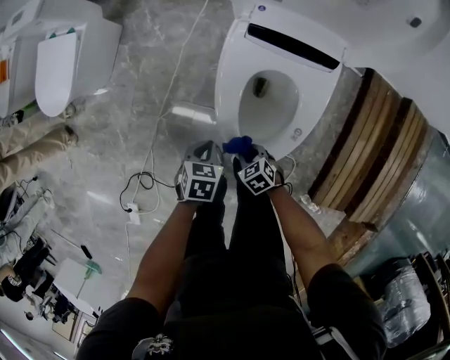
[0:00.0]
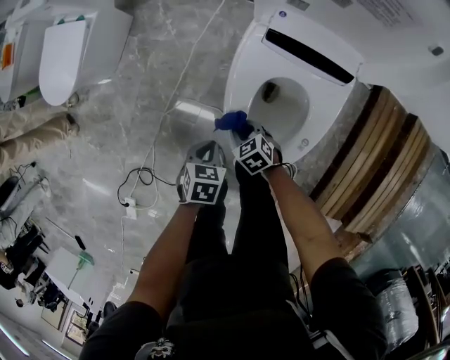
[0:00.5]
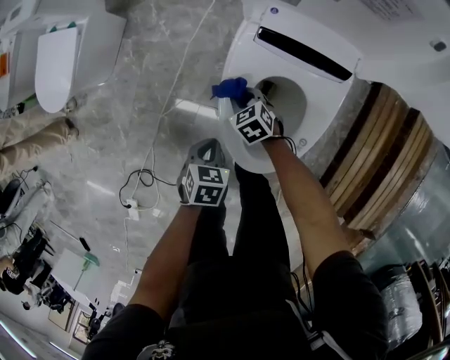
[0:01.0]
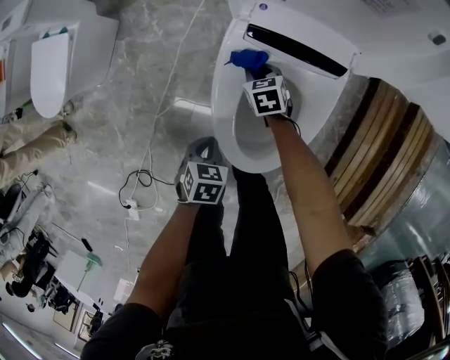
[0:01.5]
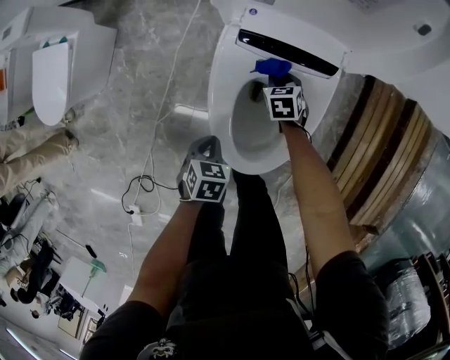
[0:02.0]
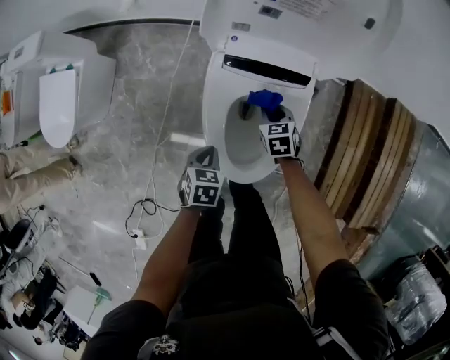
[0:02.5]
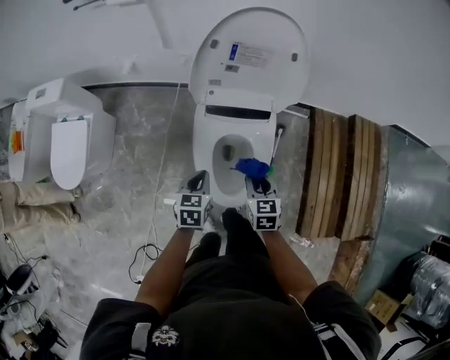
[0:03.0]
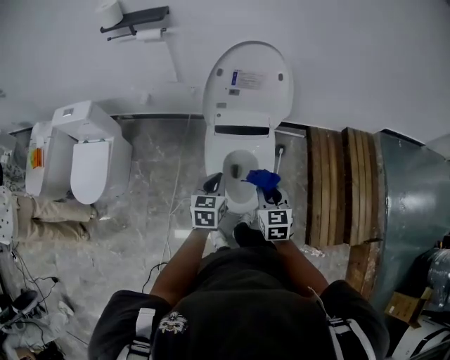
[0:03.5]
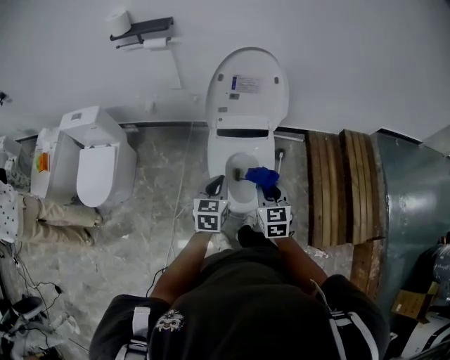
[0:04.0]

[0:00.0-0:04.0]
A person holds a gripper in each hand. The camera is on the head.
0:00.0 to 0:02.0: The right gripper changes place by about 30 cm, and swivels about 30 degrees. Meanwhile the left gripper changes place by roughly 5 cm.
0:02.0 to 0:04.0: The right gripper goes some 50 cm upward and backward, and tilts its fingers approximately 30 degrees upward. The left gripper moves upward, about 35 cm, and points its fingers roughly 40 degrees further upward.

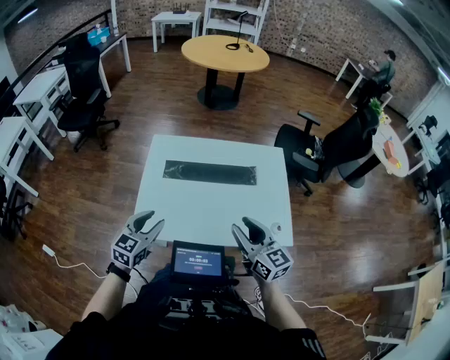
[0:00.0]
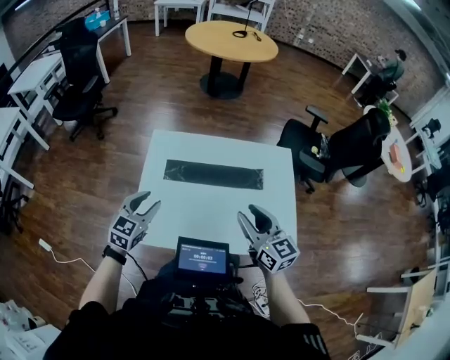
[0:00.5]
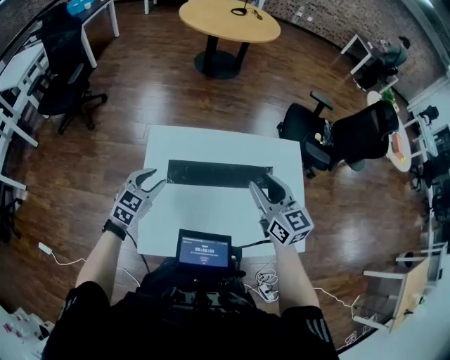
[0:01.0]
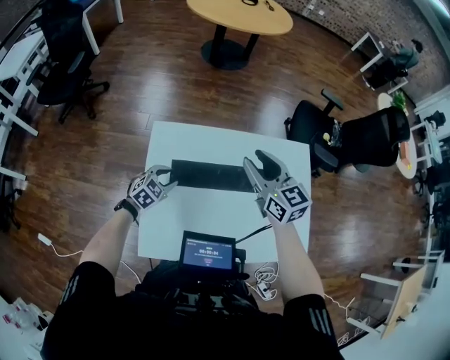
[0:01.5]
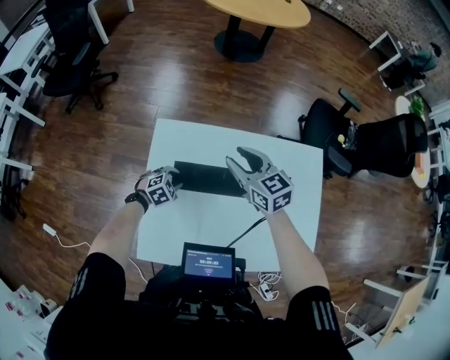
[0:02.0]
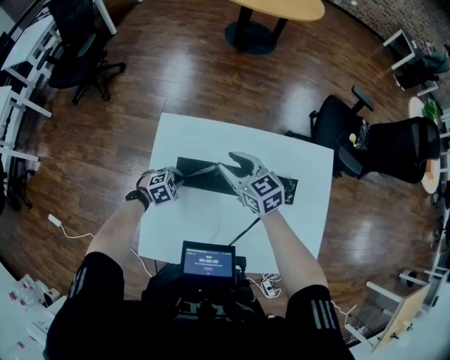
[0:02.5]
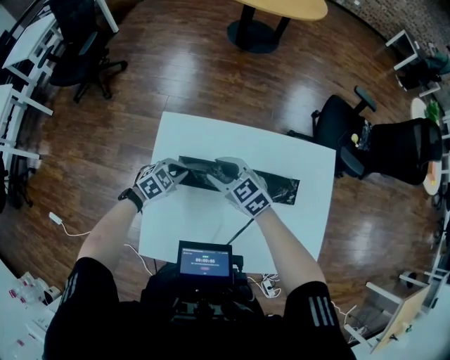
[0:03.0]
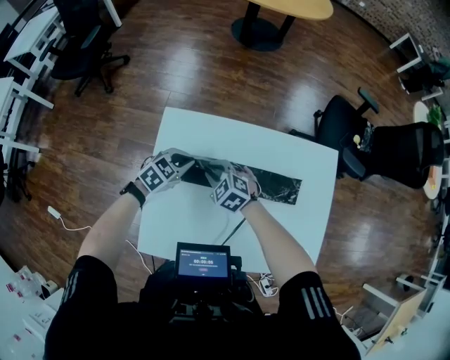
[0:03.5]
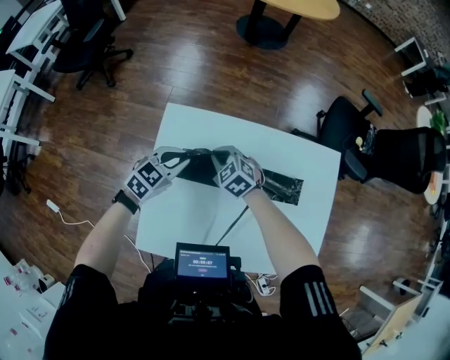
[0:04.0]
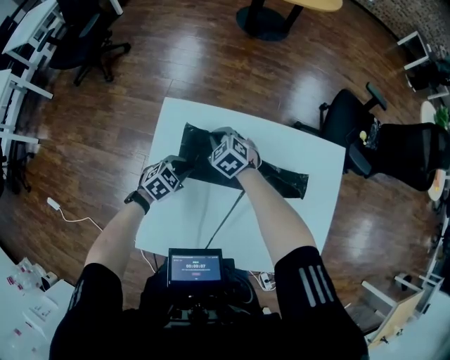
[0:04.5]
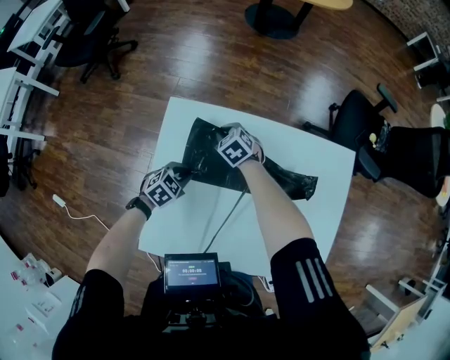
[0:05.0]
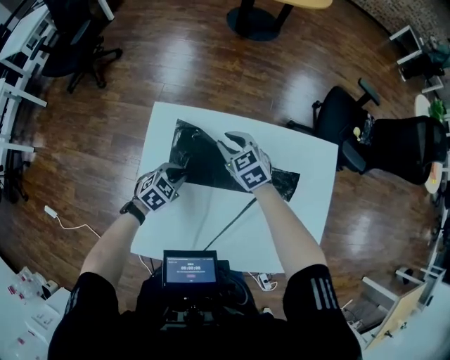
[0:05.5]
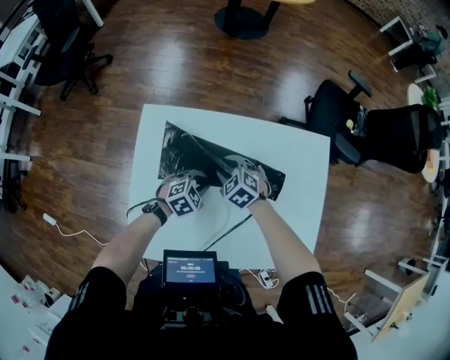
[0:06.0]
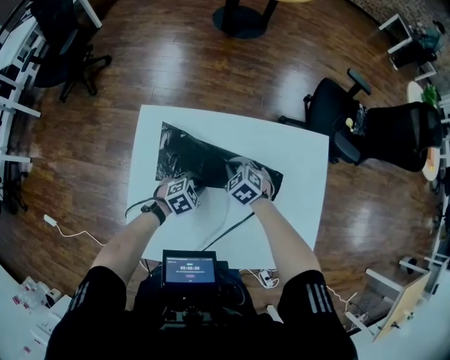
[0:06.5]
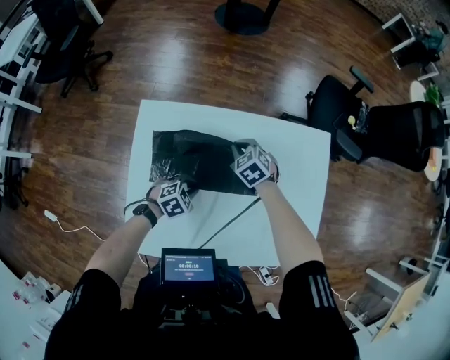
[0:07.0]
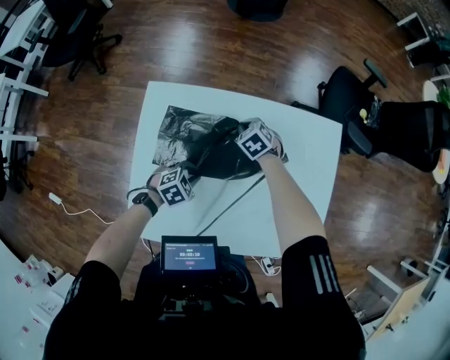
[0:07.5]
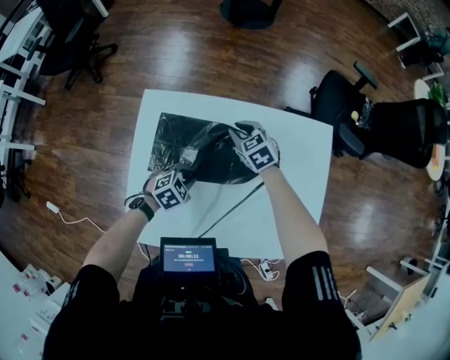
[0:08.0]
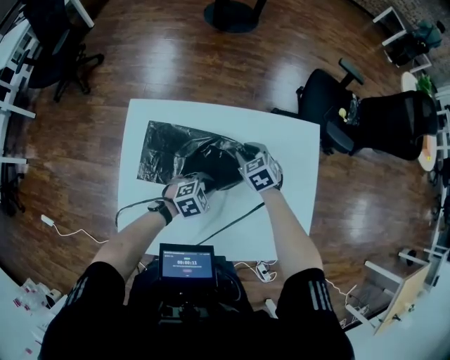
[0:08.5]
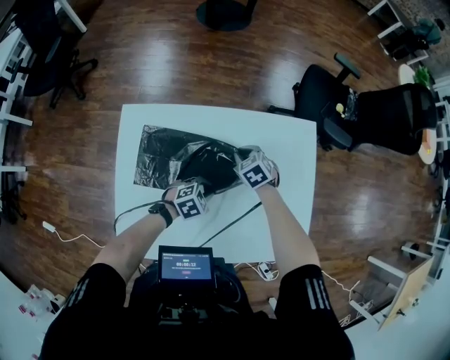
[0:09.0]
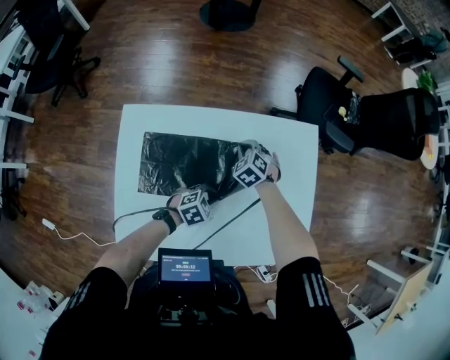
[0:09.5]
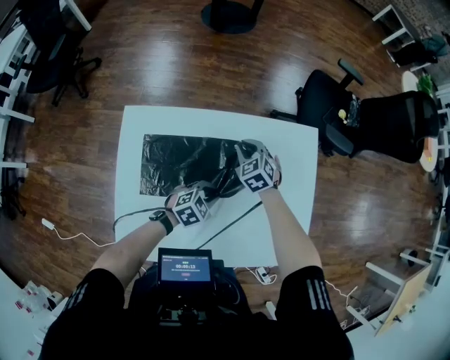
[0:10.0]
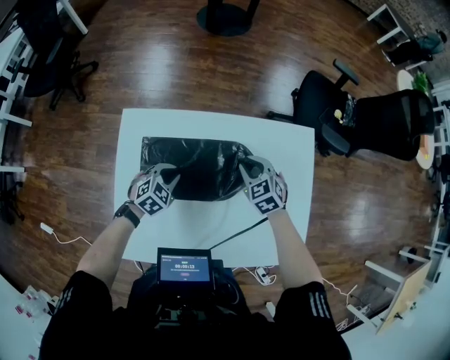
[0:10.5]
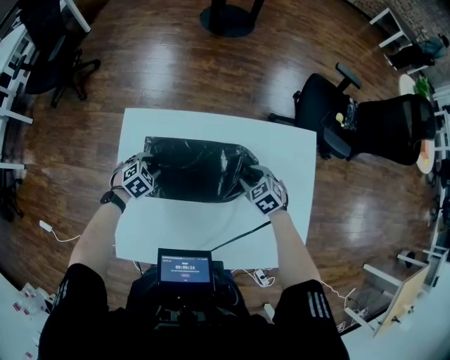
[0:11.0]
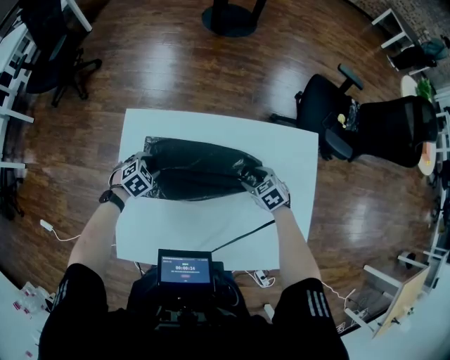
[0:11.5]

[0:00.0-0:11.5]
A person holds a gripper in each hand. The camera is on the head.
0:00.0 to 0:02.0: The right gripper travels forward and to the left by roughly 40 cm, and swivels roughly 20 degrees, while the left gripper heads forward and downward, covering about 40 cm, and angles its fingers downward, by roughly 40 degrees.
0:02.0 to 0:04.0: The right gripper is displaced downward and to the left by about 20 cm, changes its angle by about 40 degrees, and closes its fingers. Meanwhile the left gripper goes some 15 cm upward, and changes its angle by about 30 degrees.
0:04.0 to 0:06.0: The right gripper is displaced to the right and downward by roughly 10 cm, and opens its fingers, while the left gripper heads to the right, downward and backward, covering roughly 20 cm, and changes its angle by roughly 20 degrees.
0:06.0 to 0:07.5: The left gripper is displaced backward by approximately 5 cm. The right gripper travels forward by approximately 10 cm, and closes its fingers.
0:07.5 to 0:09.5: Both grippers move to the right, some 10 cm. The right gripper opens, then closes once more.
0:09.5 to 0:11.5: The left gripper ends up about 30 cm from where it was, changes its angle by about 30 degrees, and opens its fingers, while the right gripper goes upward and returns, some 10 cm each way, swivels roughly 20 degrees, and opens.

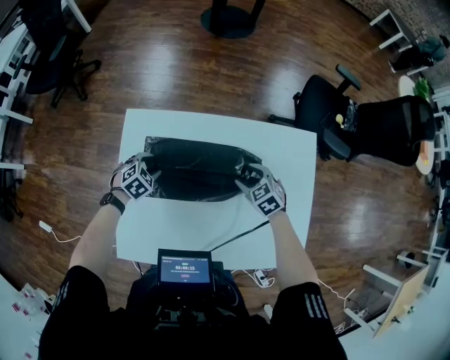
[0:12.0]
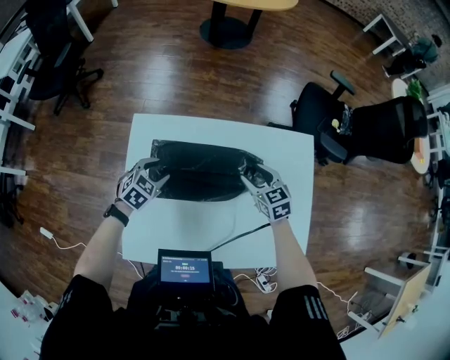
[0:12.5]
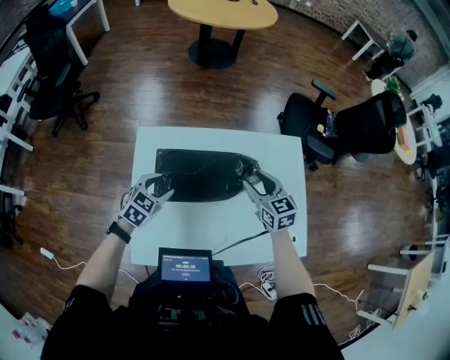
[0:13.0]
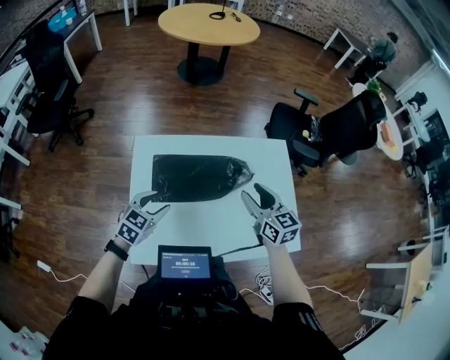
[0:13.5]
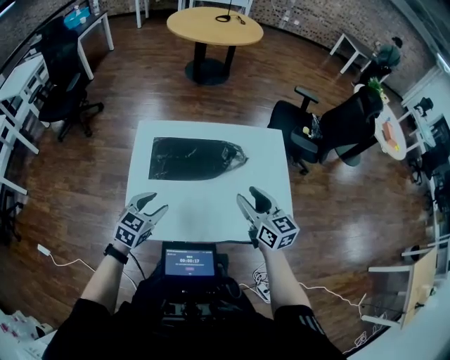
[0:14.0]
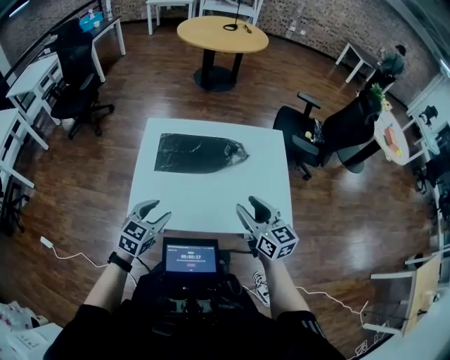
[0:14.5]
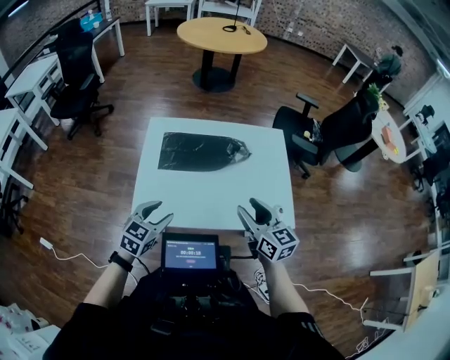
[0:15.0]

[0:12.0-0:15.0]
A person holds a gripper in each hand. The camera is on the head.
0:12.0 to 0:13.5: Both grippers travel together upward and backward, roughly 25 cm. The left gripper changes its angle by roughly 30 degrees. Meanwhile the right gripper tips its fingers upward by approximately 40 degrees.
0:13.5 to 0:15.0: The grippers both shift backward by about 20 cm.

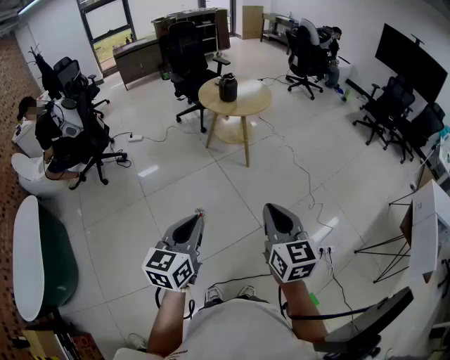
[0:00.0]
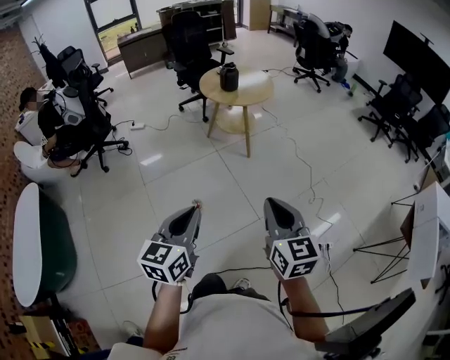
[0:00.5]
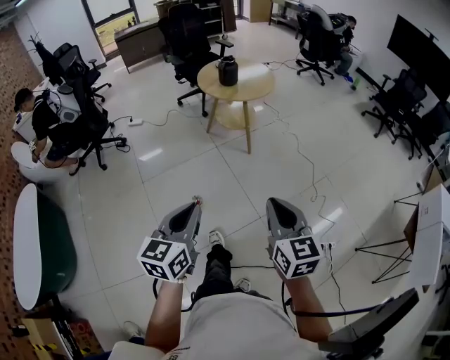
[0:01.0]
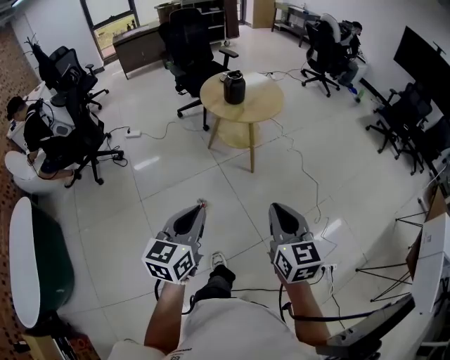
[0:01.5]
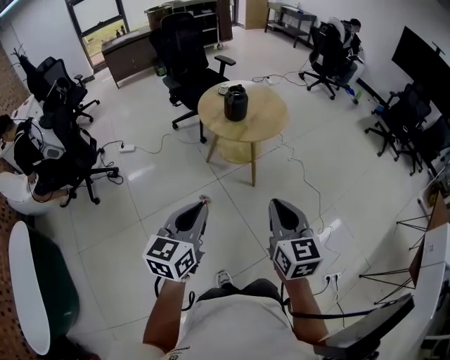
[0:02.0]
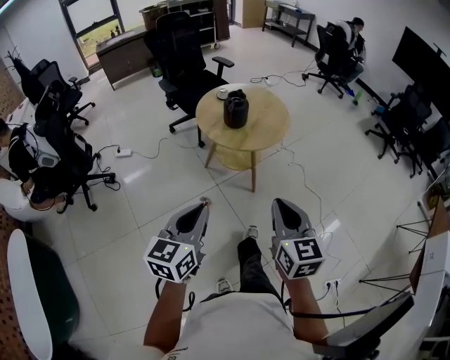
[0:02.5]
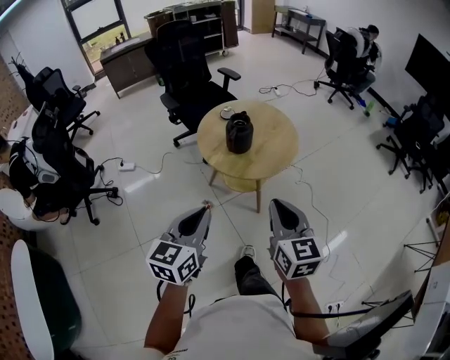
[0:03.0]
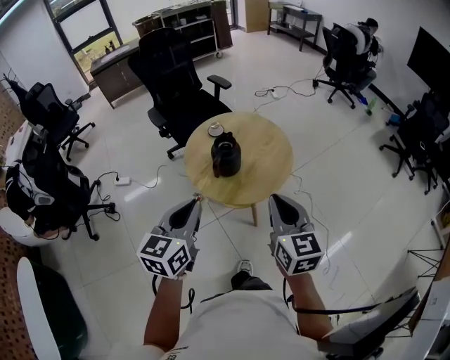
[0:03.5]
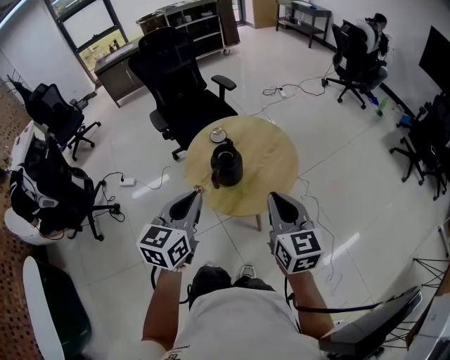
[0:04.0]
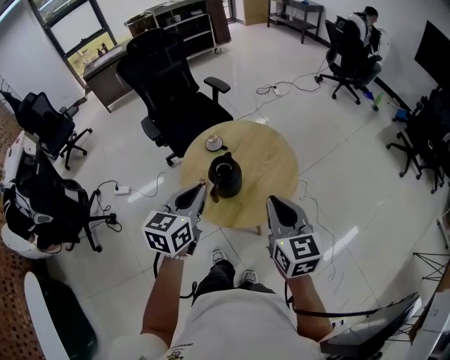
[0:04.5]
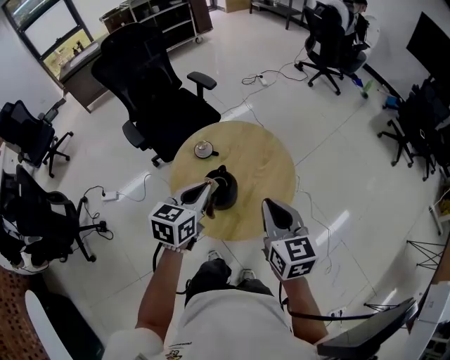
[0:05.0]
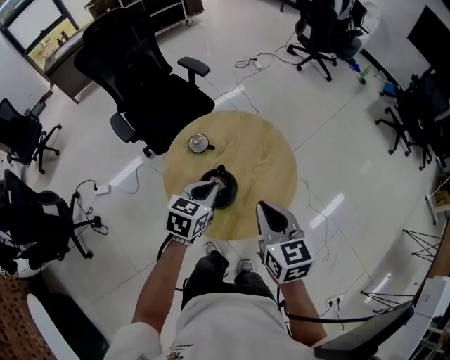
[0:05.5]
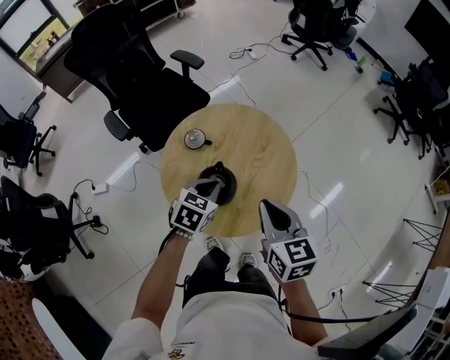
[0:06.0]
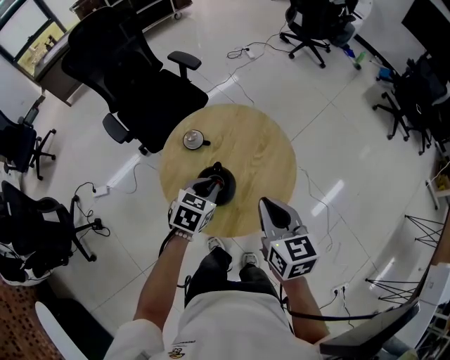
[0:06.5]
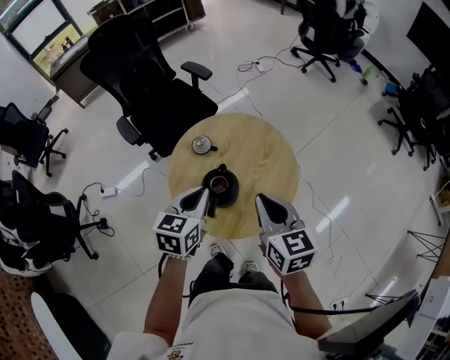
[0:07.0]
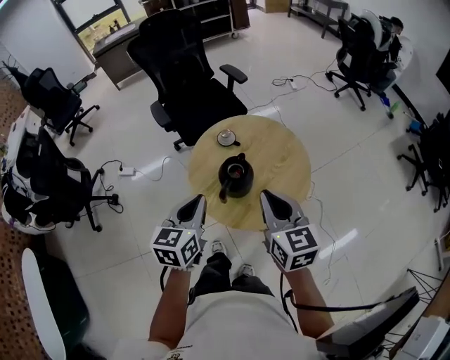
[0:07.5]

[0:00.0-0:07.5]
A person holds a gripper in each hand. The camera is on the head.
0:00.0 to 0:02.0: The grippers both shift forward by some 35 cm.
0:02.0 to 0:04.0: Both grippers are carried forward, about 40 cm.
0:04.0 to 0:05.5: The right gripper shifts about 15 cm forward, downward and to the left, while the left gripper goes approximately 25 cm forward and downward, and changes its angle by some 30 degrees.
0:05.5 to 0:07.5: The left gripper goes approximately 15 cm backward and upward, and rotates approximately 30 degrees. The right gripper moves upward, some 5 cm.
